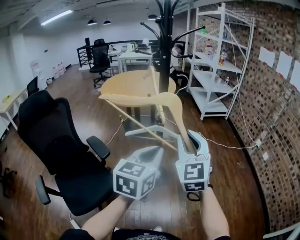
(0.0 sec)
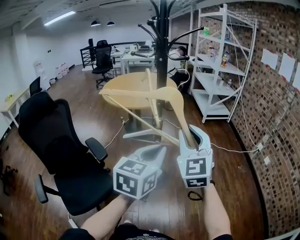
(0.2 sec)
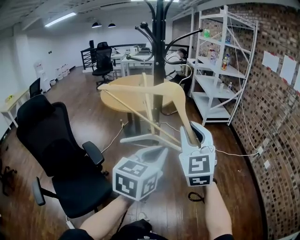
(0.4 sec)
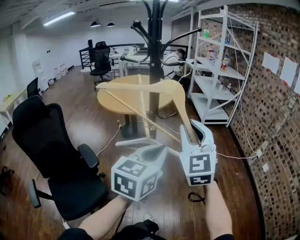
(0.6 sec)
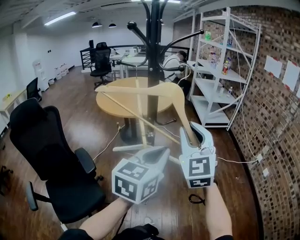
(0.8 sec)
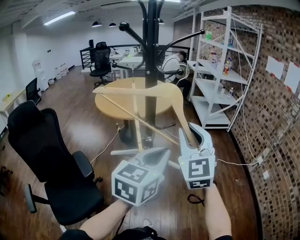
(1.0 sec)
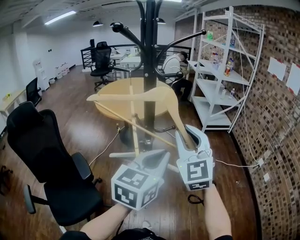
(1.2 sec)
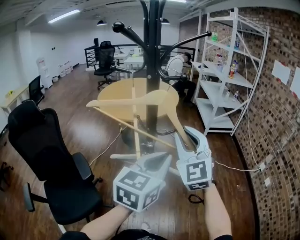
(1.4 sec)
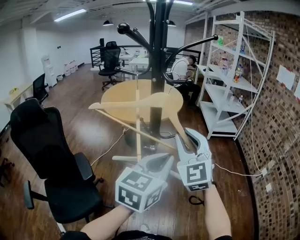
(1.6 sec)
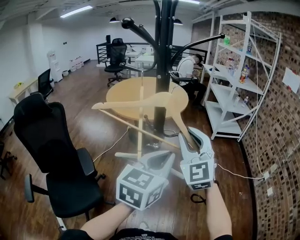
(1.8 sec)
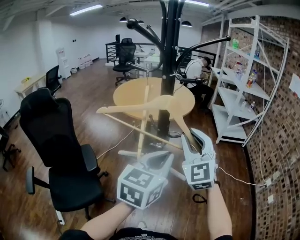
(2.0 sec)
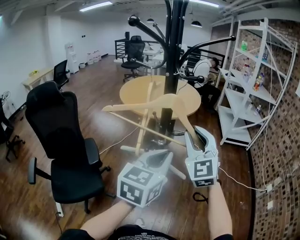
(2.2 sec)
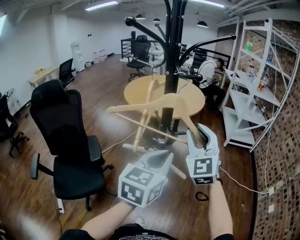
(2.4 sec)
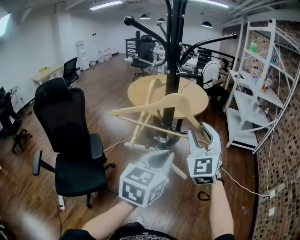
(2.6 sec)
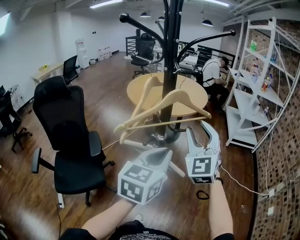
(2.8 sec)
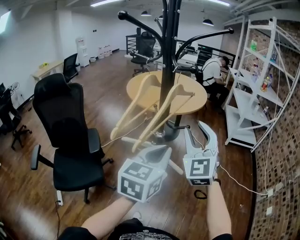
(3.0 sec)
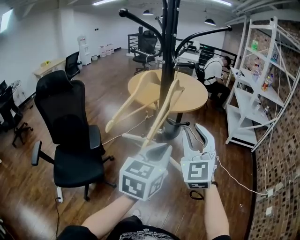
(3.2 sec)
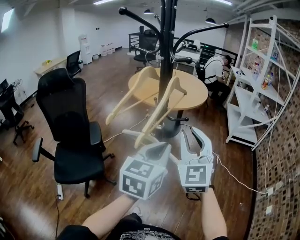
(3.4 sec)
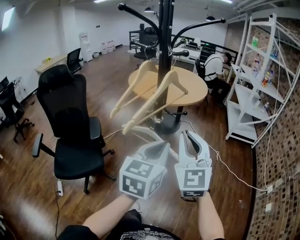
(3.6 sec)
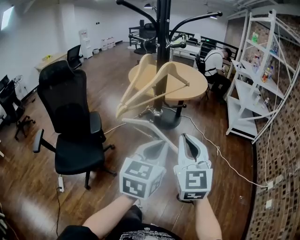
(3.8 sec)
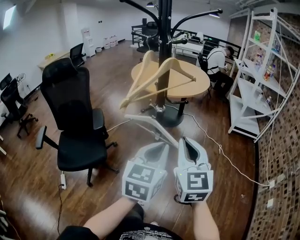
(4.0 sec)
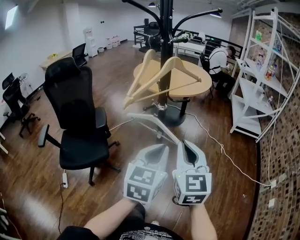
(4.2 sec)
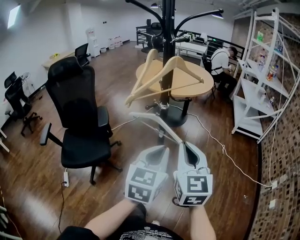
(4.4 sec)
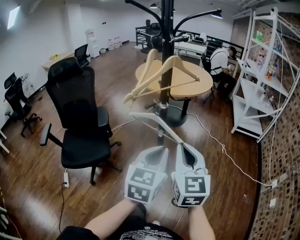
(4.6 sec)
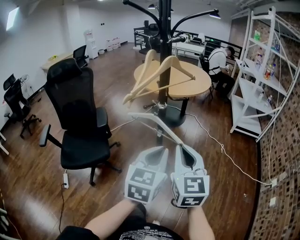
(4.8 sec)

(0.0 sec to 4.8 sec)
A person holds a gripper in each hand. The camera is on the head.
0.0 sec - 1.6 sec: The right gripper goes roughly 20 cm forward. The left gripper travels forward and to the right by about 20 cm.
1.6 sec - 3.2 sec: The left gripper swivels some 20 degrees.
3.2 sec - 4.8 sec: Both grippers travel together backward and downward, some 15 cm. The right gripper turns by about 30 degrees, and closes its fingers.

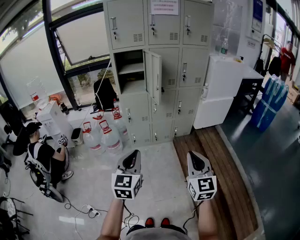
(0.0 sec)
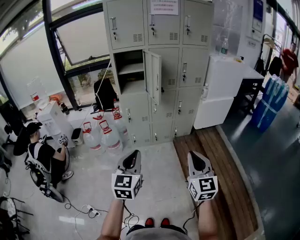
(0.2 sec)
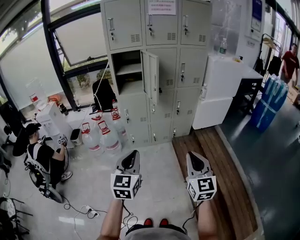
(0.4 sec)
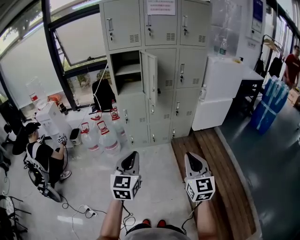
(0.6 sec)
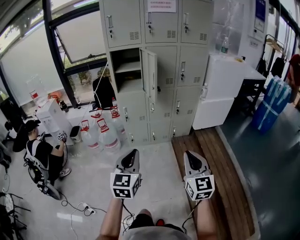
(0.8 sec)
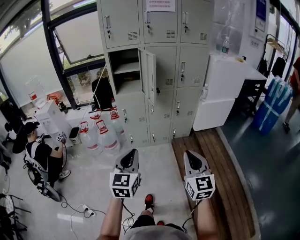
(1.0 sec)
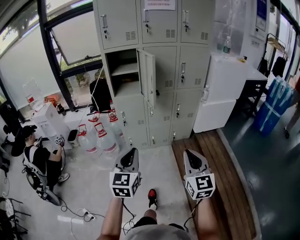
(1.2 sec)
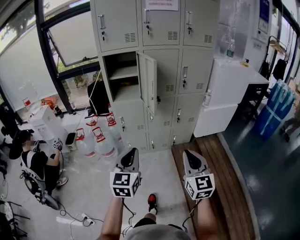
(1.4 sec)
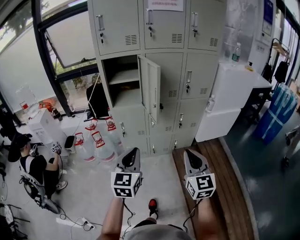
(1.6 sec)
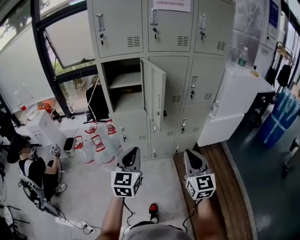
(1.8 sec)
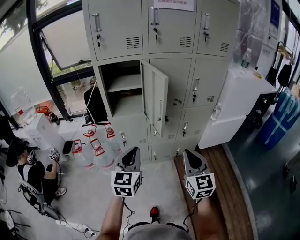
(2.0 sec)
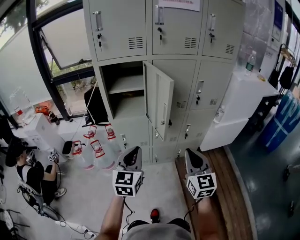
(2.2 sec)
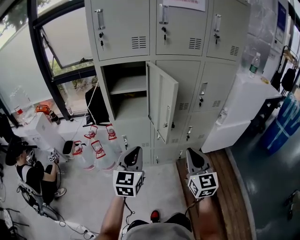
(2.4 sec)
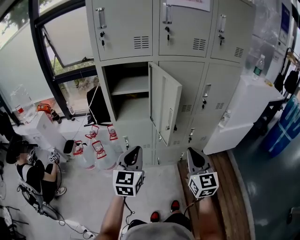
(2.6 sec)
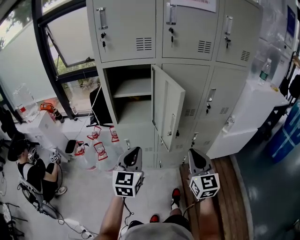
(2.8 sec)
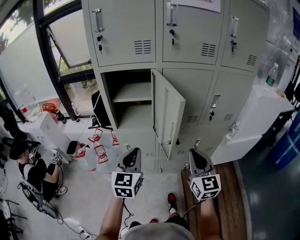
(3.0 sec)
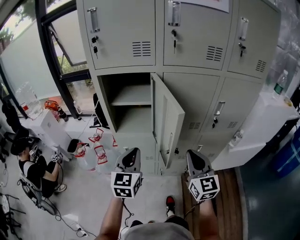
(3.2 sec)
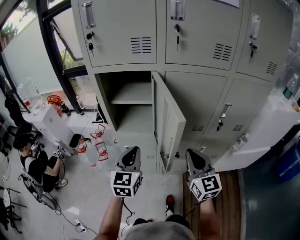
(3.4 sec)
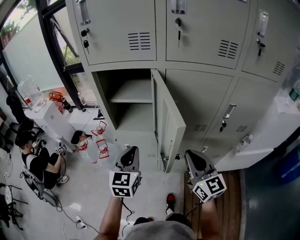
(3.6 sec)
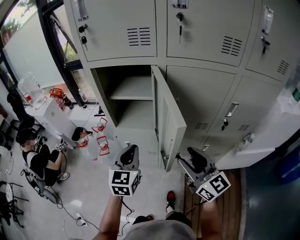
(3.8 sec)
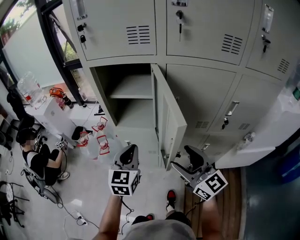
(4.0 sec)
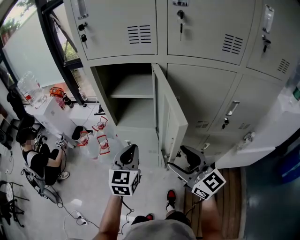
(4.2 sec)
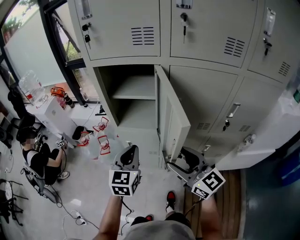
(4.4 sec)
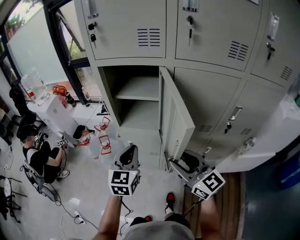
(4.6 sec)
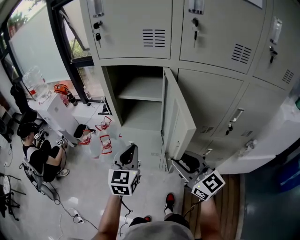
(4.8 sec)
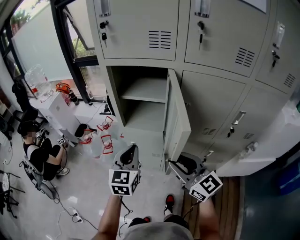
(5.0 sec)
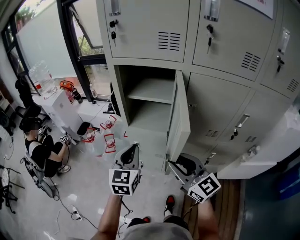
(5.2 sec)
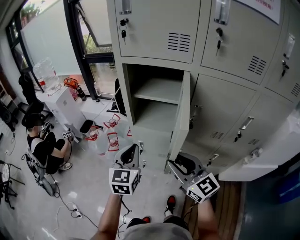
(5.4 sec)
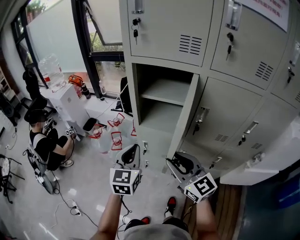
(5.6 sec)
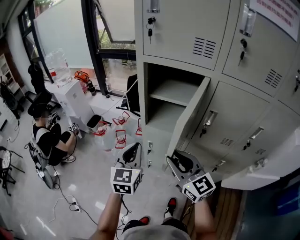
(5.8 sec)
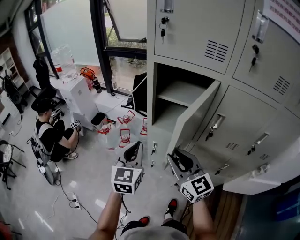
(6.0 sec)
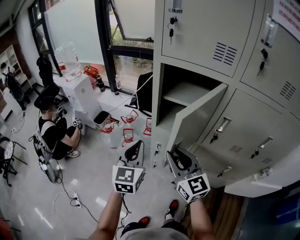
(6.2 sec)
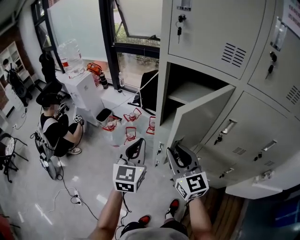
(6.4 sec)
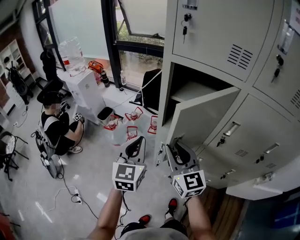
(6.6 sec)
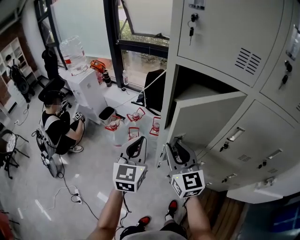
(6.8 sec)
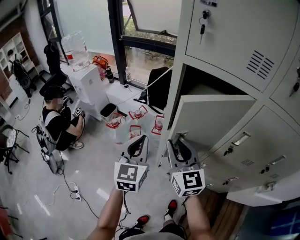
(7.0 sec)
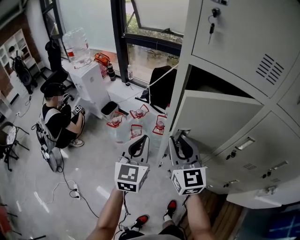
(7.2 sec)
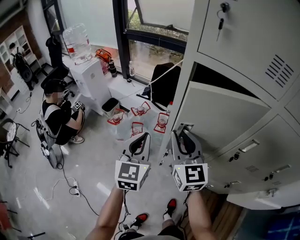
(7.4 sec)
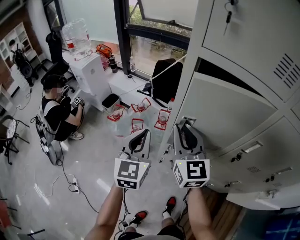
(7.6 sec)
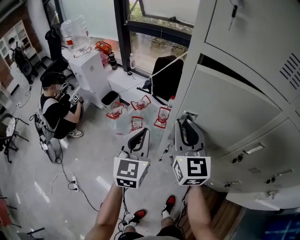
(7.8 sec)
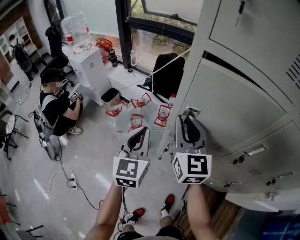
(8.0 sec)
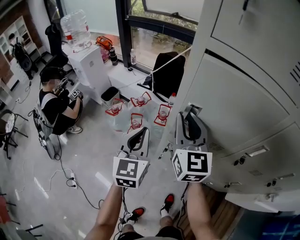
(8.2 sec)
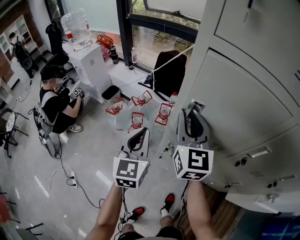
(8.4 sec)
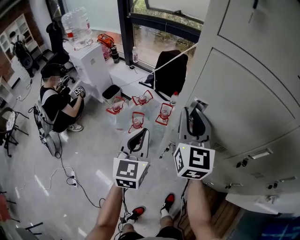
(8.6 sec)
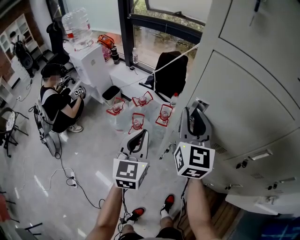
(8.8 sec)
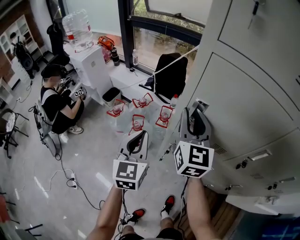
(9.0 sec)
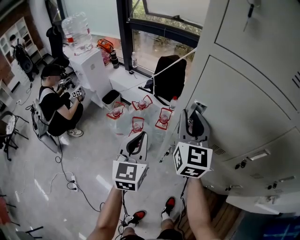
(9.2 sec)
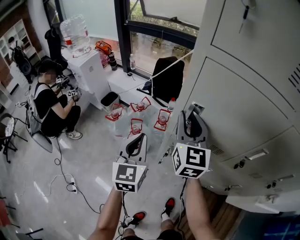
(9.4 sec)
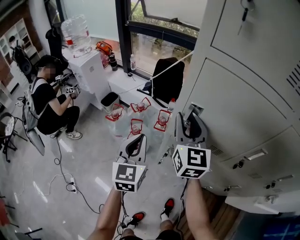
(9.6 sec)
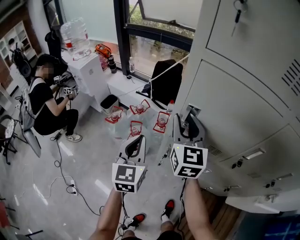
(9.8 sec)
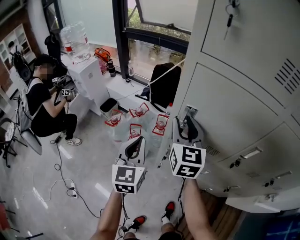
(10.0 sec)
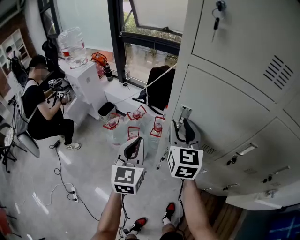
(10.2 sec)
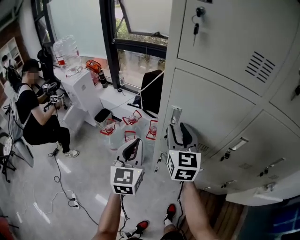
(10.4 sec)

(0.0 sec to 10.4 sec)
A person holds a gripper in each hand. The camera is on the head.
0.0 sec - 1.4 sec: Both grippers move forward, roughly 15 cm.
1.4 sec - 3.0 sec: The two grippers go approximately 35 cm forward.
3.0 sec - 4.4 sec: The two grippers go roughly 10 cm forward. The right gripper rotates about 40 degrees, and opens.
4.4 sec - 6.0 sec: The left gripper travels to the left by about 15 cm. The right gripper travels to the left and forward by roughly 15 cm, and closes.
6.0 sec - 7.4 sec: The left gripper is displaced forward by roughly 10 cm, while the right gripper travels forward by approximately 15 cm.
7.4 sec - 9.0 sec: The left gripper moves downward, roughly 5 cm. The right gripper goes some 10 cm forward.
9.0 sec - 10.4 sec: The right gripper shifts by approximately 5 cm. Meanwhile the left gripper moves upward, some 5 cm.

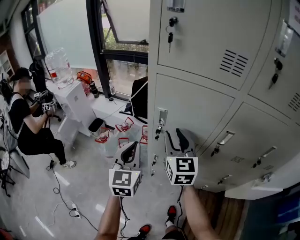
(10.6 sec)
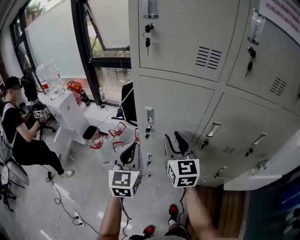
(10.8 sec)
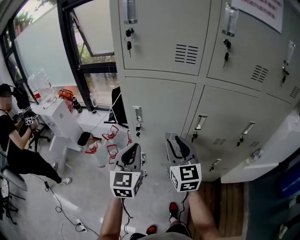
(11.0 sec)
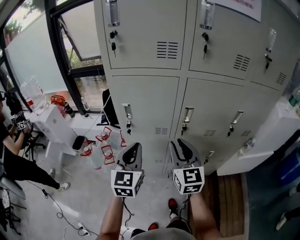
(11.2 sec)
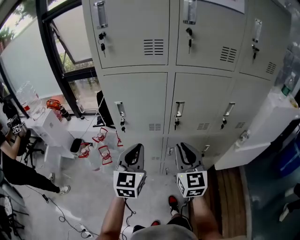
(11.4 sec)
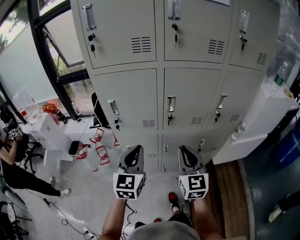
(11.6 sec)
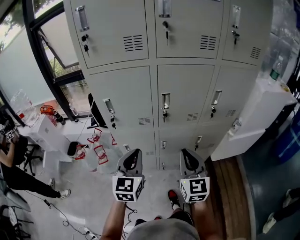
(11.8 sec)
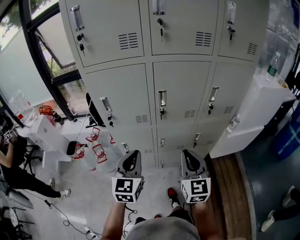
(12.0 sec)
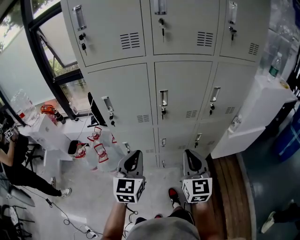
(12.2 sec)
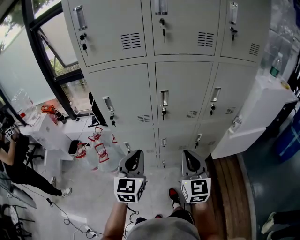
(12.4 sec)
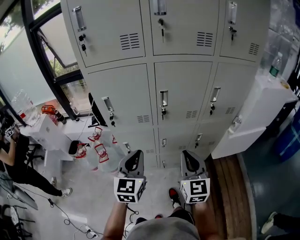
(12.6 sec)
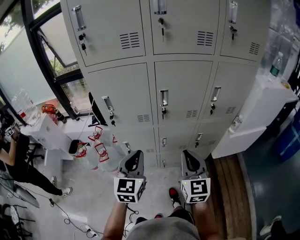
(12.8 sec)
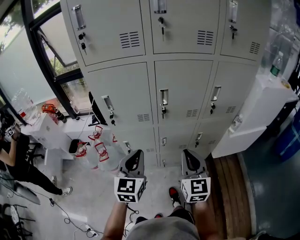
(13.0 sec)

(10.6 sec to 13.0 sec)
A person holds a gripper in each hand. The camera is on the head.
10.6 sec - 11.8 sec: Both grippers move to the right and backward, roughly 30 cm. The left gripper turns by some 30 degrees. The right gripper rotates about 20 degrees, and closes its fingers.
11.8 sec - 13.0 sec: The grippers stay close to where they were, moving slightly.

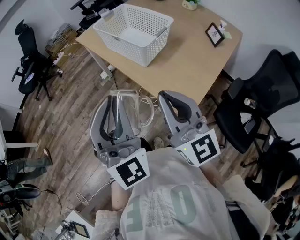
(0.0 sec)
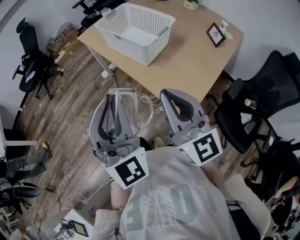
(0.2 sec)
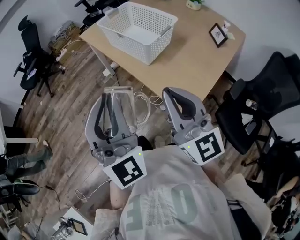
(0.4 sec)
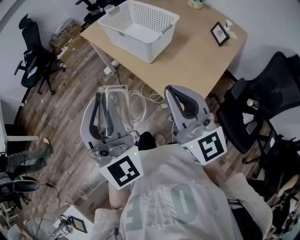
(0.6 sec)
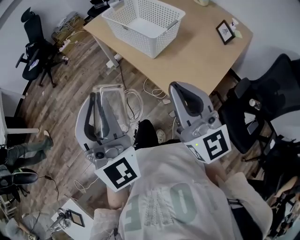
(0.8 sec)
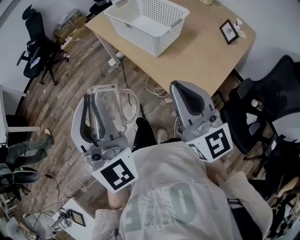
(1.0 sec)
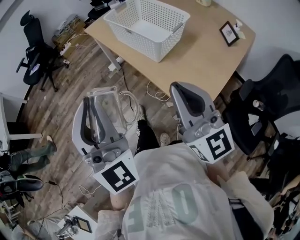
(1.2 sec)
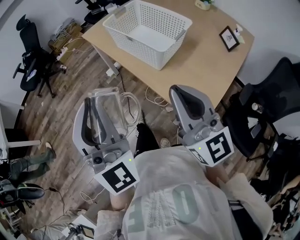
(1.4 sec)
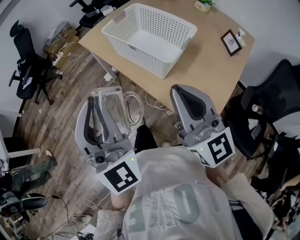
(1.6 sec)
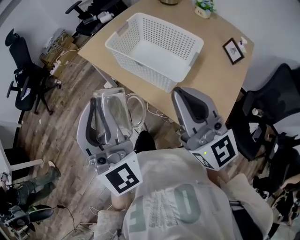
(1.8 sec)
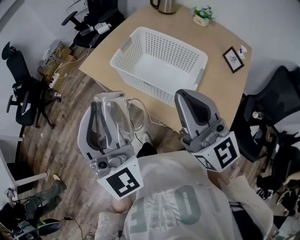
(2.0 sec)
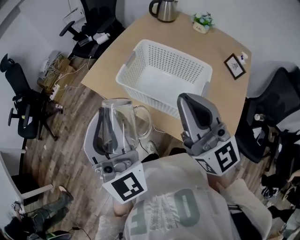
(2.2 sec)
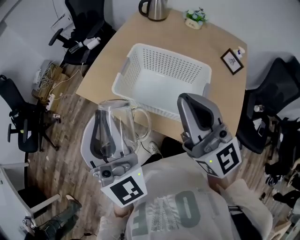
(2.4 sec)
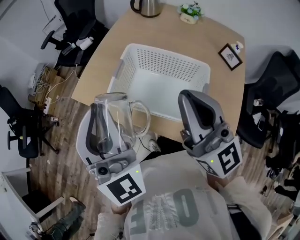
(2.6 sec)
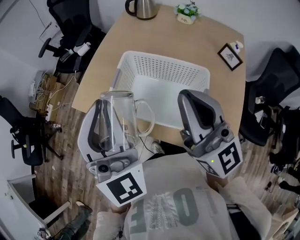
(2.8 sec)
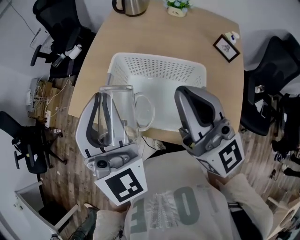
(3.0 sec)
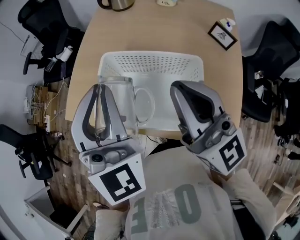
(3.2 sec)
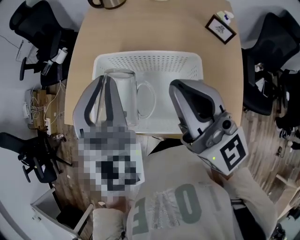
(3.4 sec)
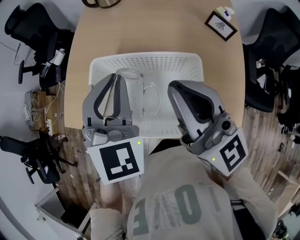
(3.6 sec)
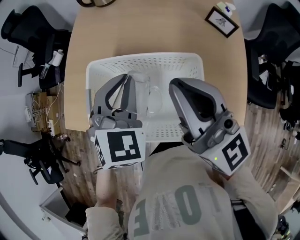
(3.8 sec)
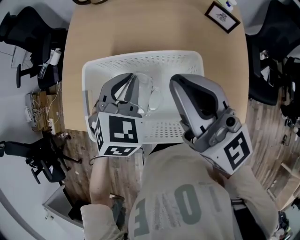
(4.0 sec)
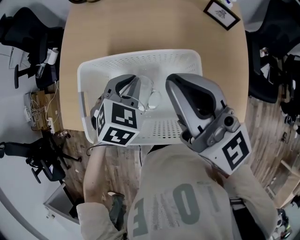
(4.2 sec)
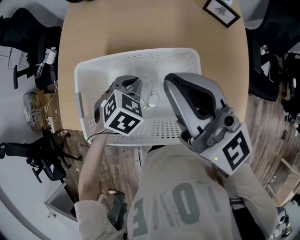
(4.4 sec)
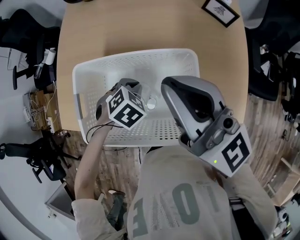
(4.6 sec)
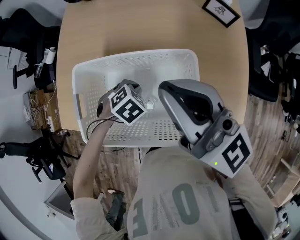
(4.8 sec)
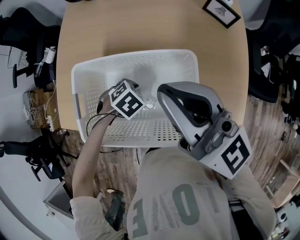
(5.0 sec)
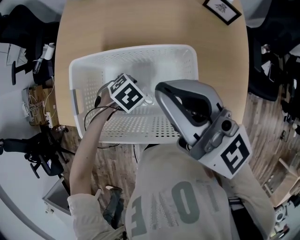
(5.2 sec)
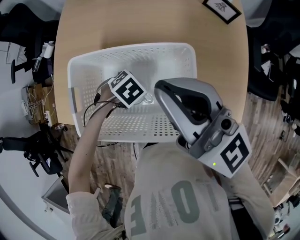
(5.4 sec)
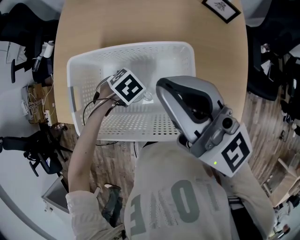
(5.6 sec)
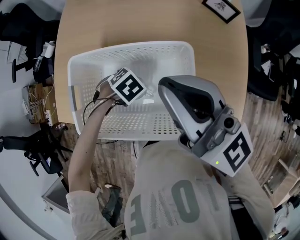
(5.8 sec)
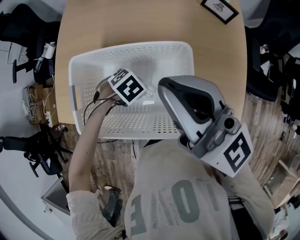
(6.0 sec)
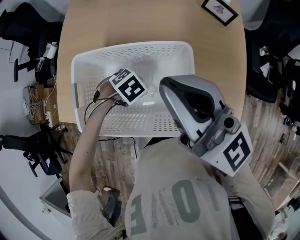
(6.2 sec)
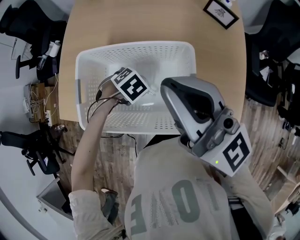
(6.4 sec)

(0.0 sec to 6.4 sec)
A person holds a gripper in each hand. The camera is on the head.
0.0 sec - 1.6 sec: The right gripper travels forward by about 15 cm. Meanwhile the left gripper heads forward and to the left, covering approximately 15 cm.
1.6 sec - 3.2 sec: The right gripper changes place by approximately 30 cm, and swivels approximately 20 degrees; the left gripper shifts by approximately 40 cm, and changes its angle by roughly 40 degrees.
3.2 sec - 4.8 sec: The left gripper travels downward by some 40 cm, and points its fingers about 70 degrees further downward; the right gripper moves roughly 10 cm.
4.8 sec - 6.4 sec: The left gripper opens.
